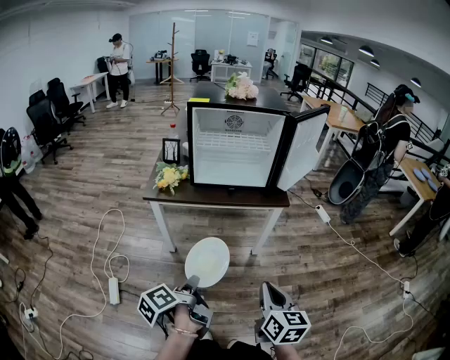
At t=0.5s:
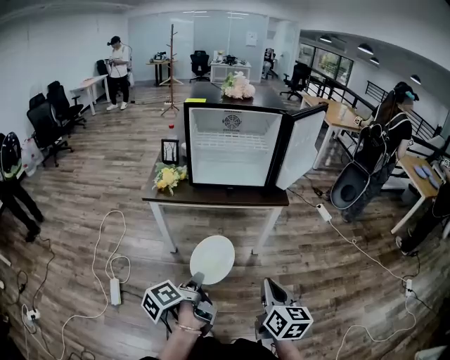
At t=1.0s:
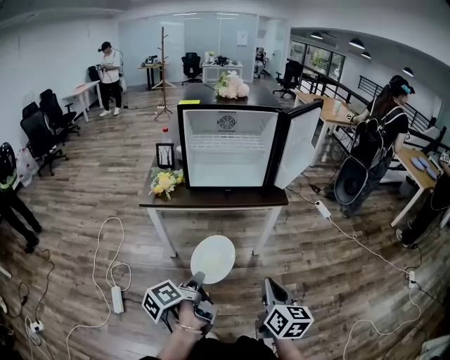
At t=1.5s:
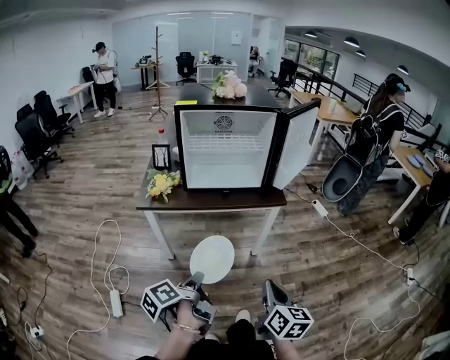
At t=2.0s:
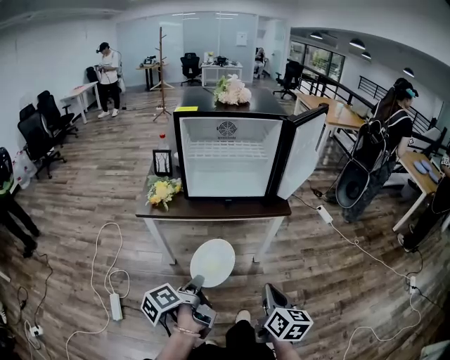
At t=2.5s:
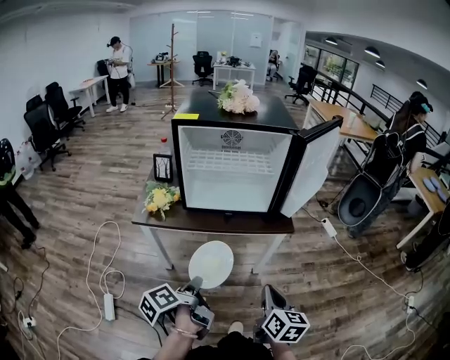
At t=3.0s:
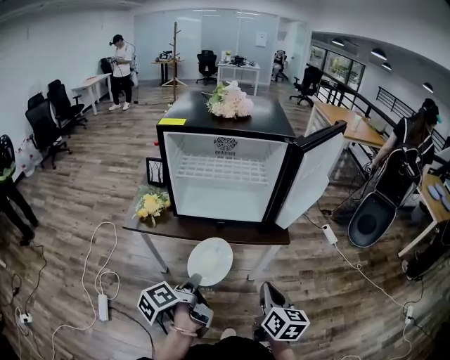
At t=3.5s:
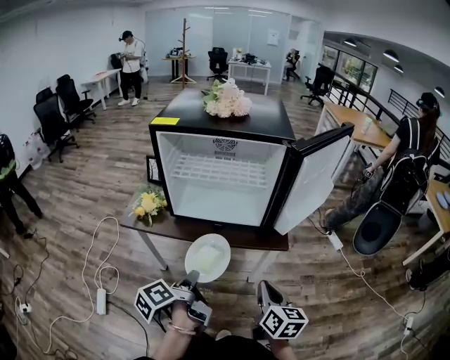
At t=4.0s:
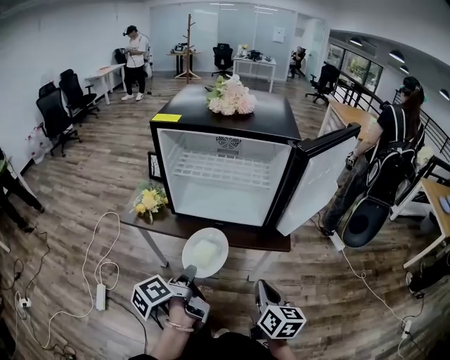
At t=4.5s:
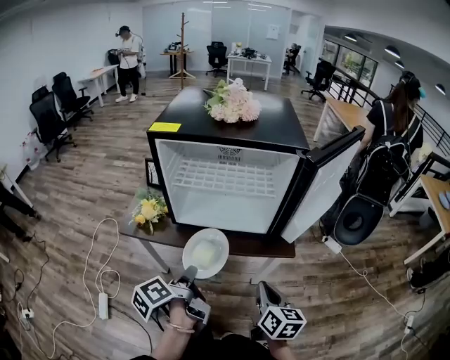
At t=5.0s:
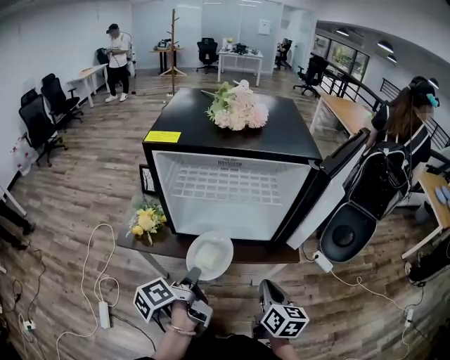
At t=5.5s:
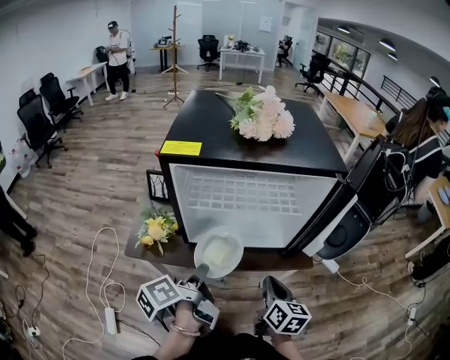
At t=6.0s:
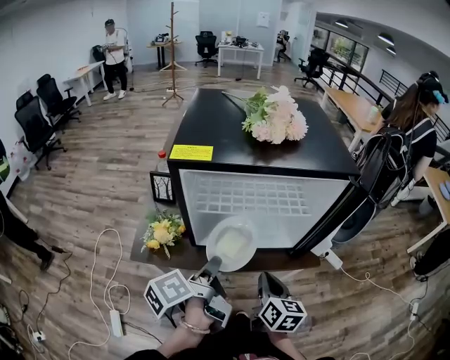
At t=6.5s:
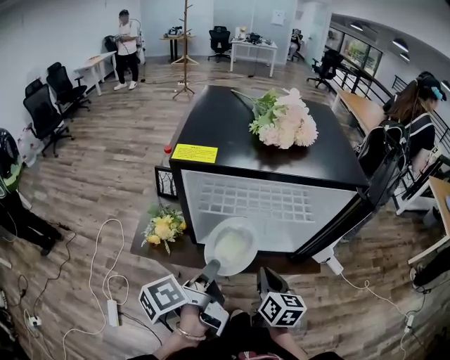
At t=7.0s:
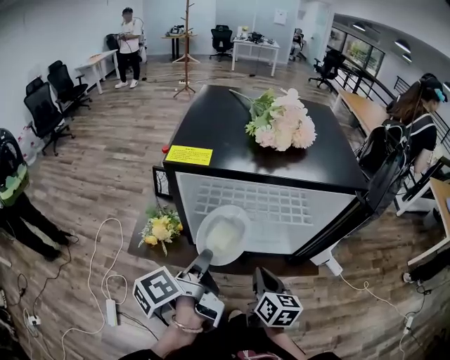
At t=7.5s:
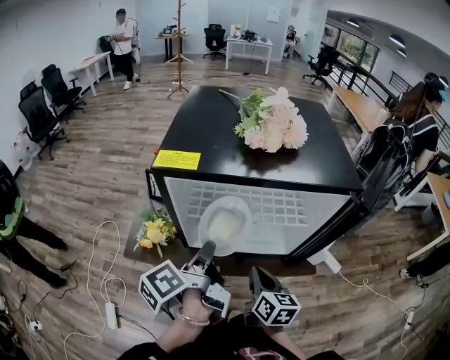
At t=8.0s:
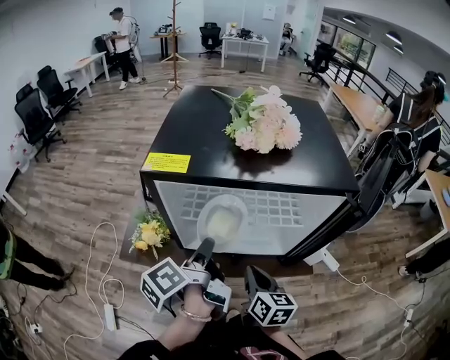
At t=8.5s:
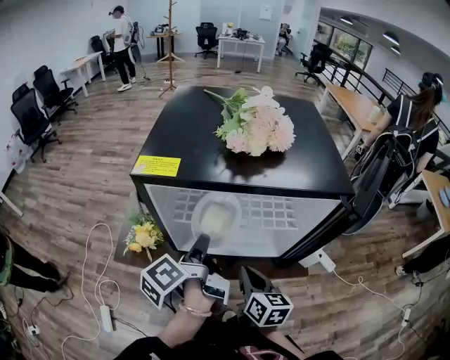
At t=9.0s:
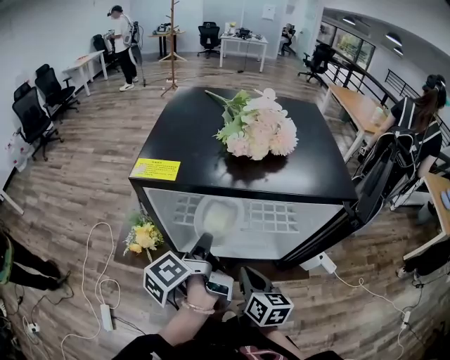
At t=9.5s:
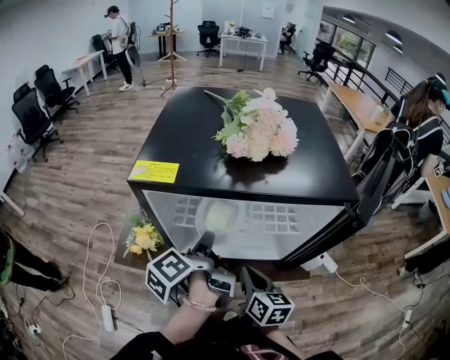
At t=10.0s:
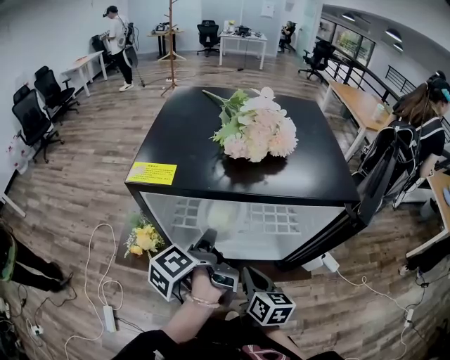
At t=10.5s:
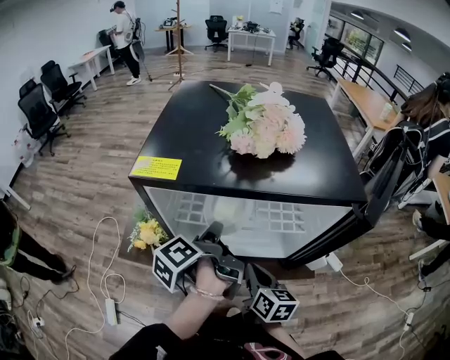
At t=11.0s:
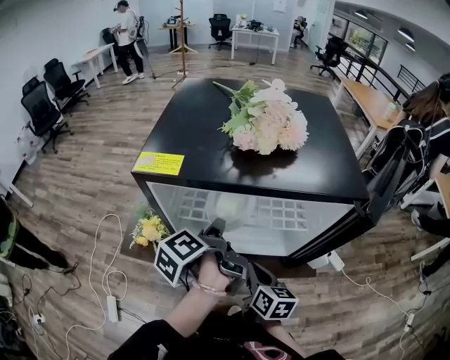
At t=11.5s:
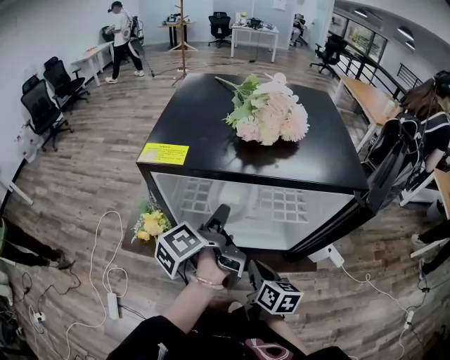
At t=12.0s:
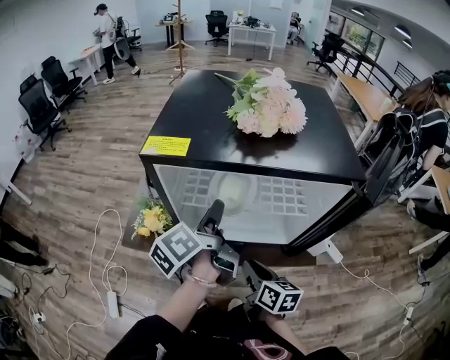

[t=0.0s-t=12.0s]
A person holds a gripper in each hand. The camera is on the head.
t=0.0s to t=2.0s: The right gripper shifts by roughly 10 cm.
t=2.0s to t=4.0s: The right gripper changes place by roughly 25 cm.
t=4.0s to t=6.0s: The right gripper ends up roughly 20 cm from where it was.
t=6.0s to t=8.0s: The right gripper shifts by about 5 cm.

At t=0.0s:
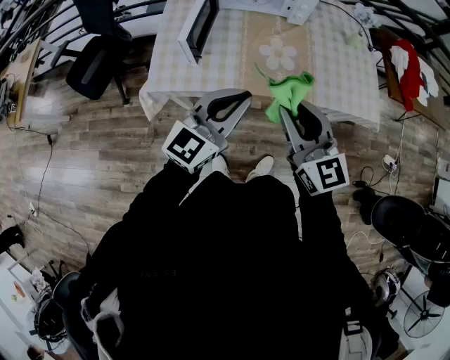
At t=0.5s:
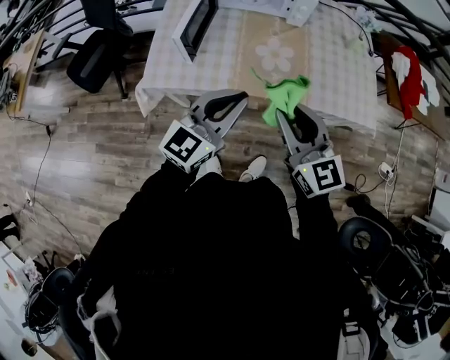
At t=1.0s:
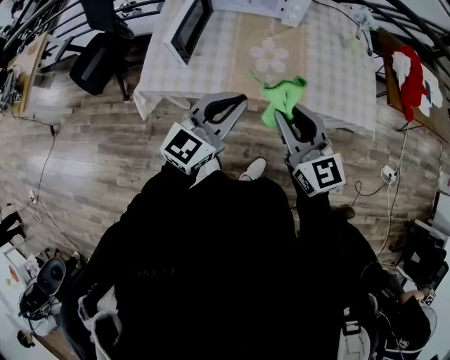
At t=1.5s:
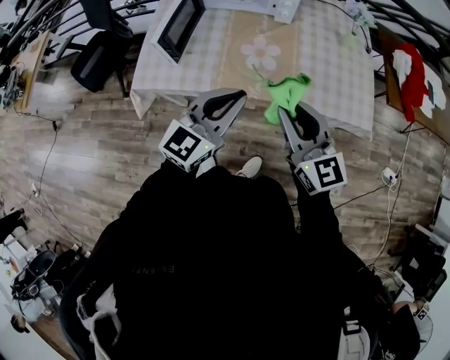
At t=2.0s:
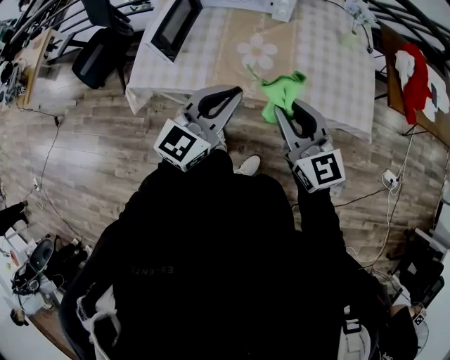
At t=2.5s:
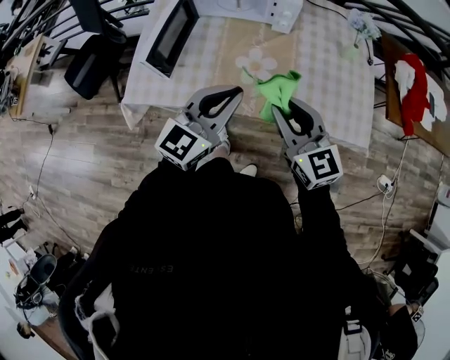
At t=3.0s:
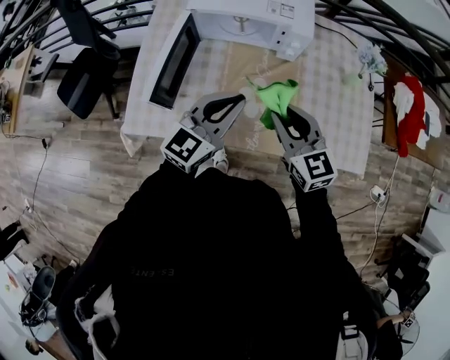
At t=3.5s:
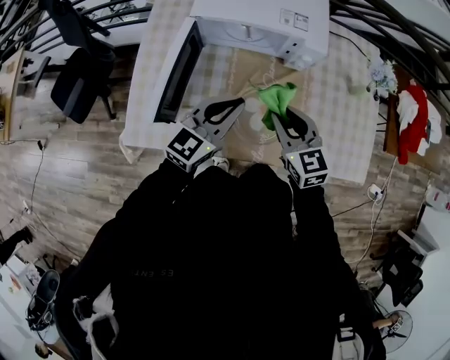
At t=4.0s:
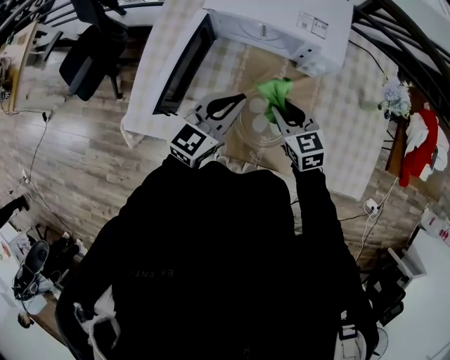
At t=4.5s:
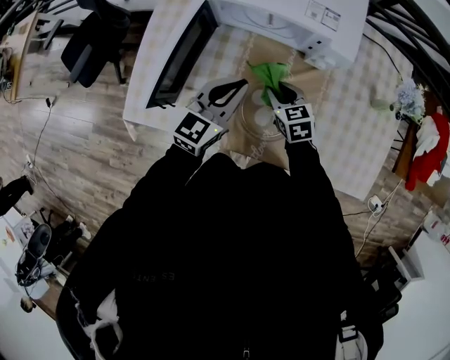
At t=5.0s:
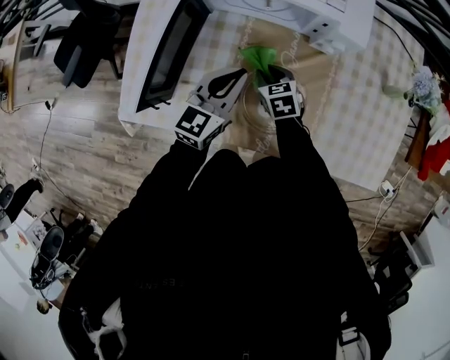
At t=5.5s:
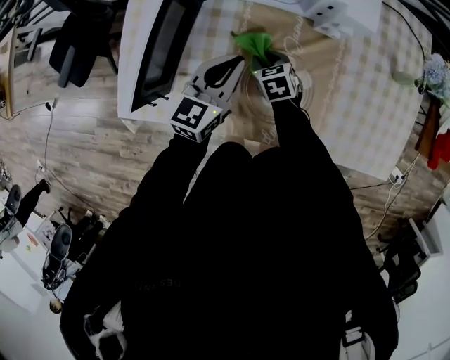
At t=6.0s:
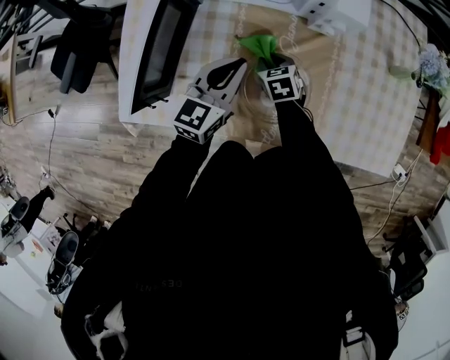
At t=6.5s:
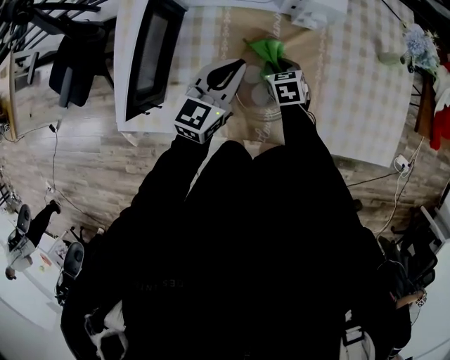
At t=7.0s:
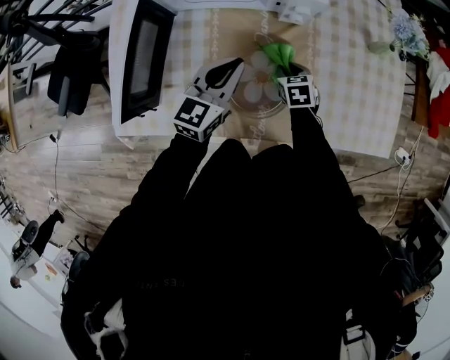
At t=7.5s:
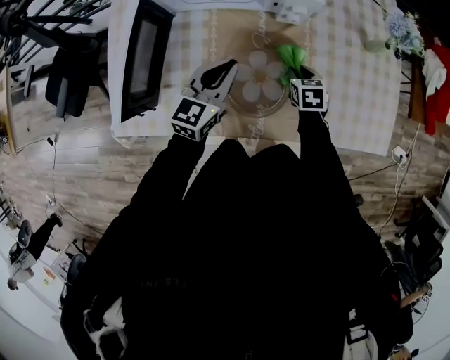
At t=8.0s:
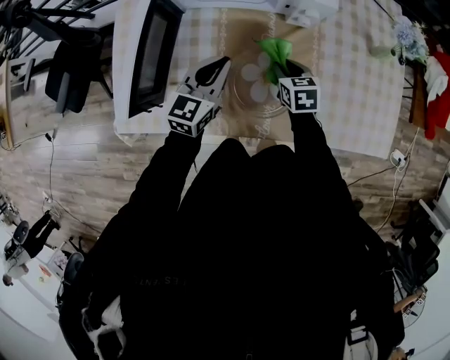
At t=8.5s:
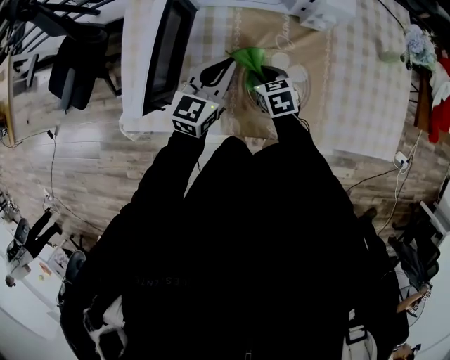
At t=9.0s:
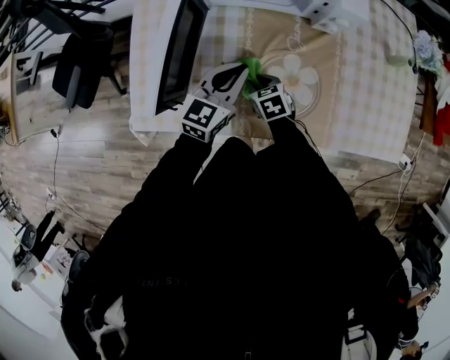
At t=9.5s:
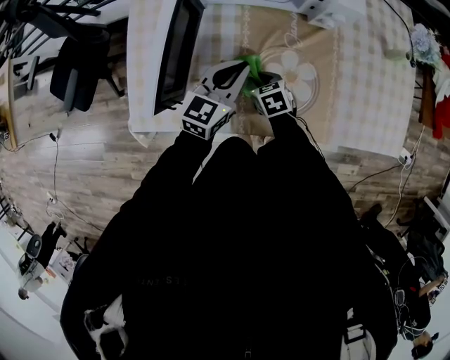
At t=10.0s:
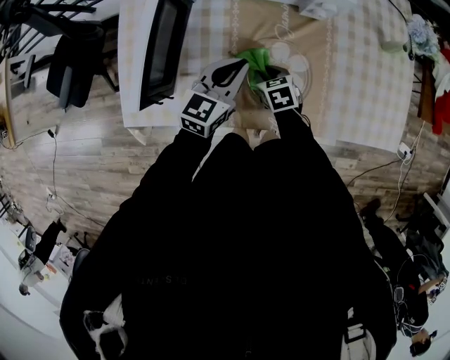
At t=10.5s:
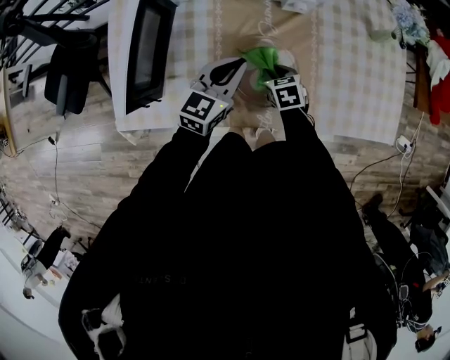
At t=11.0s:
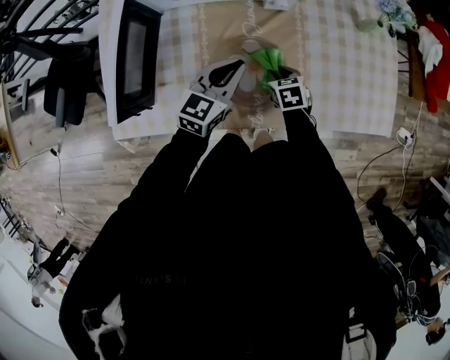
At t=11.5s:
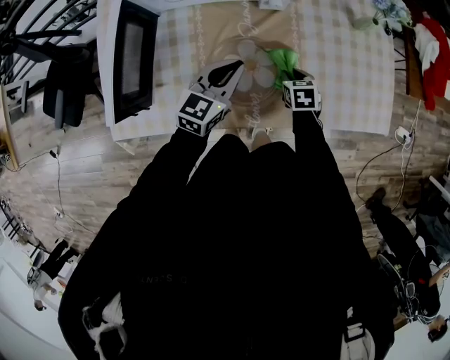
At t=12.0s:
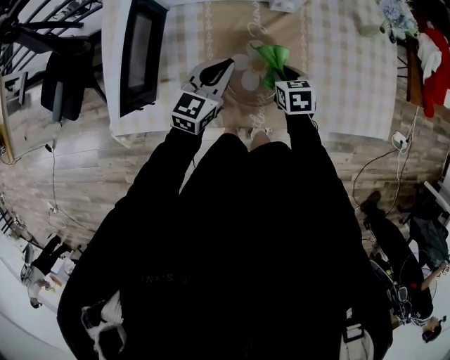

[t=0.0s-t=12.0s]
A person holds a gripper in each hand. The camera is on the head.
t=0.0s to t=2.0s: Both grippers travel together to the right, roughly 15 cm.
t=2.0s to t=4.0s: The left gripper goes approximately 30 cm forward. Meanwhile the right gripper travels forward and downward by about 35 cm, and swivels approximately 30 degrees.
t=4.0s to t=6.0s: The right gripper is displaced downward by approximately 20 cm, and swivels about 20 degrees; the left gripper heads downward, covering approximately 10 cm.
t=6.0s to t=8.0s: The right gripper heads to the right and upward, covering some 10 cm.
t=8.0s to t=10.0s: The right gripper travels to the left, downward and backward by about 15 cm.
t=10.0s to t=12.0s: The right gripper heads to the right, covering roughly 15 cm.

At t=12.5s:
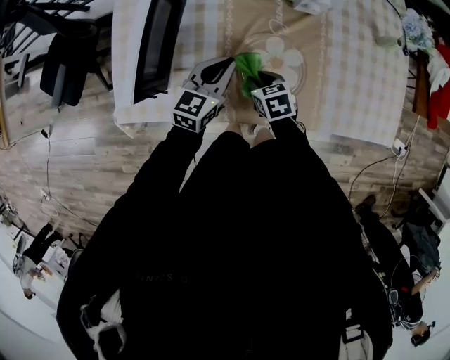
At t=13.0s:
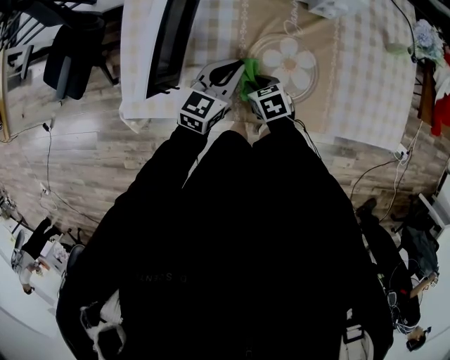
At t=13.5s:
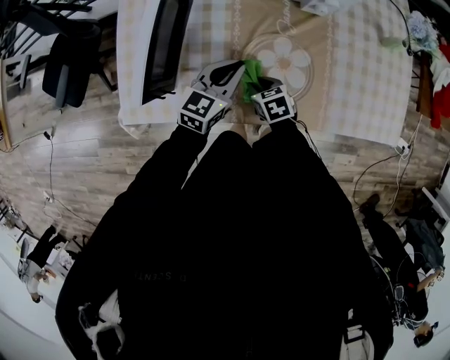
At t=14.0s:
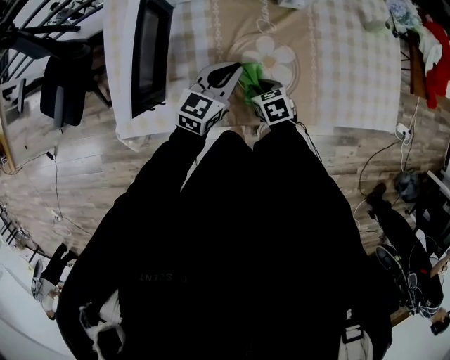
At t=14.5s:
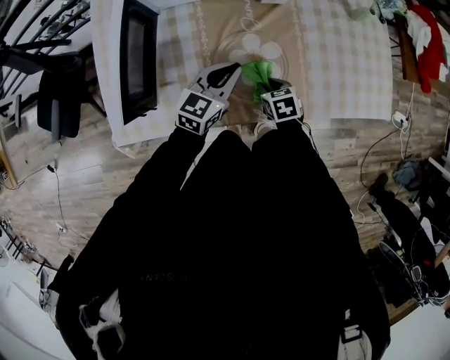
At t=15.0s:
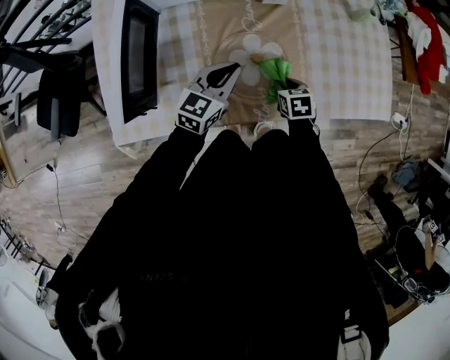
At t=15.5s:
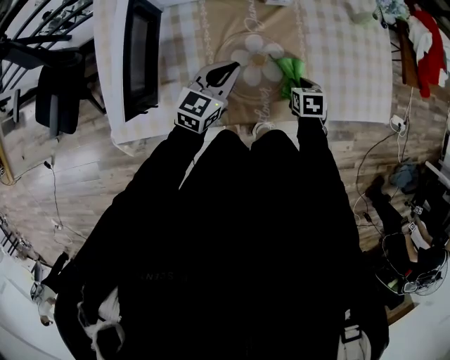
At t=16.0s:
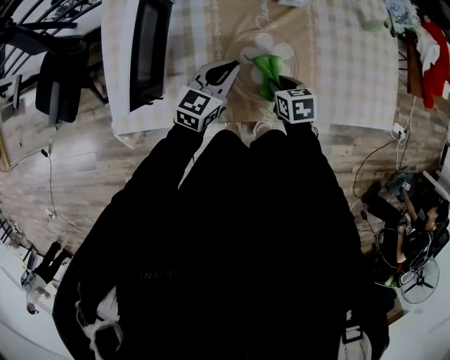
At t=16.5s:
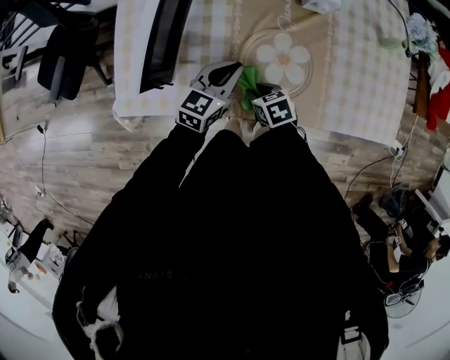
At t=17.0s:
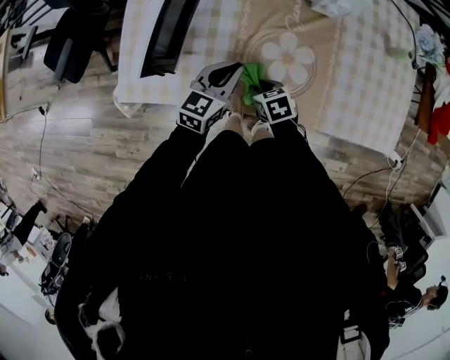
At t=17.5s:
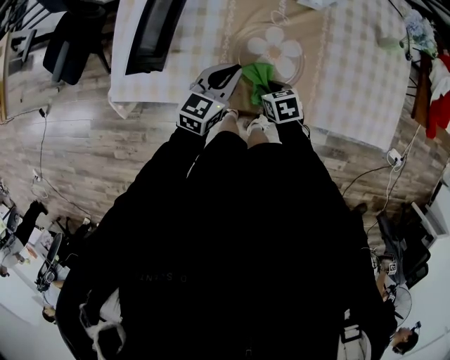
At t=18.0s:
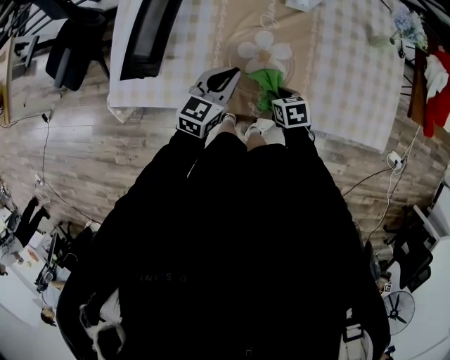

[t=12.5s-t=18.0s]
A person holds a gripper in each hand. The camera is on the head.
t=12.5s to t=14.5s: Both grippers move to the right, approximately 10 cm.
t=14.5s to t=16.0s: The right gripper reaches about 10 cm to the right, then returns.
t=16.0s to t=18.0s: The right gripper travels to the left and back again, some 10 cm each way, while the left gripper shifts by some 5 cm.
